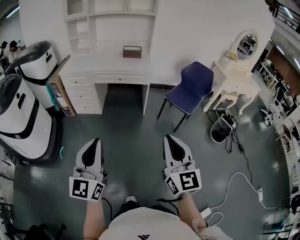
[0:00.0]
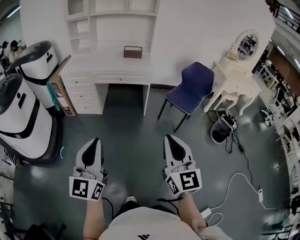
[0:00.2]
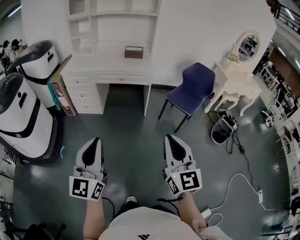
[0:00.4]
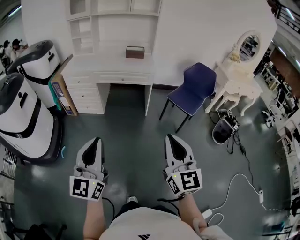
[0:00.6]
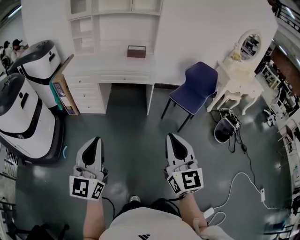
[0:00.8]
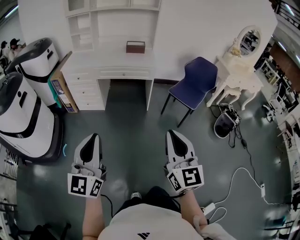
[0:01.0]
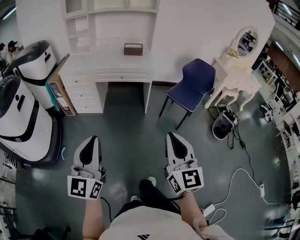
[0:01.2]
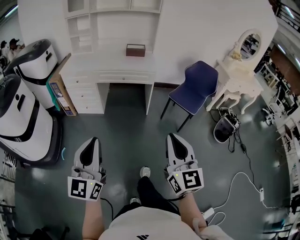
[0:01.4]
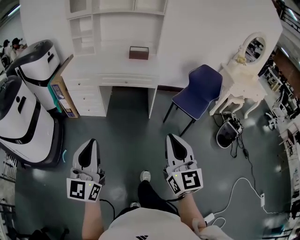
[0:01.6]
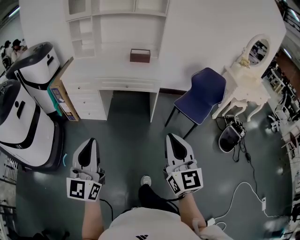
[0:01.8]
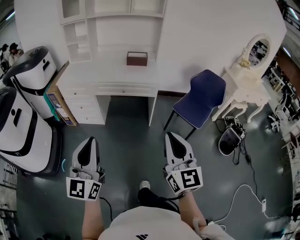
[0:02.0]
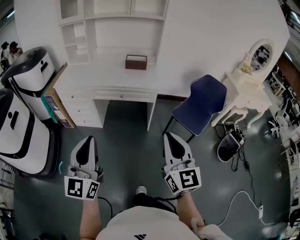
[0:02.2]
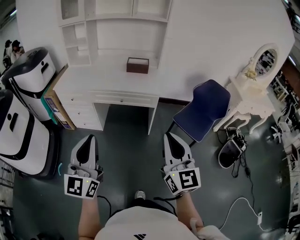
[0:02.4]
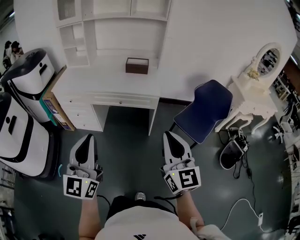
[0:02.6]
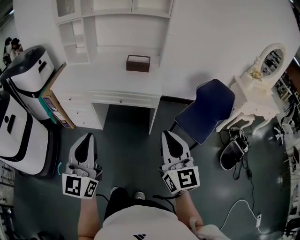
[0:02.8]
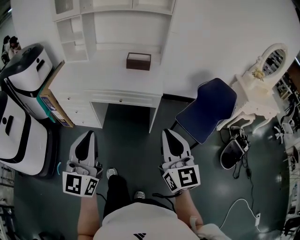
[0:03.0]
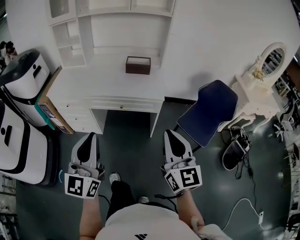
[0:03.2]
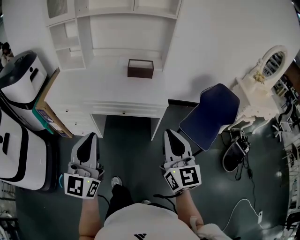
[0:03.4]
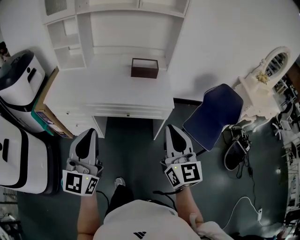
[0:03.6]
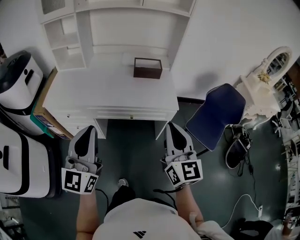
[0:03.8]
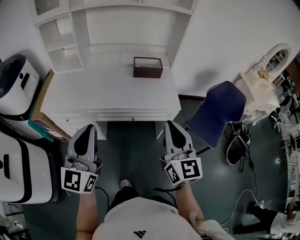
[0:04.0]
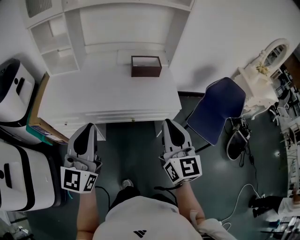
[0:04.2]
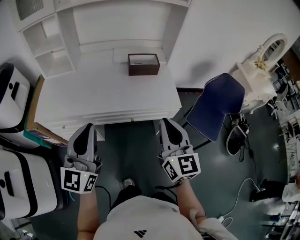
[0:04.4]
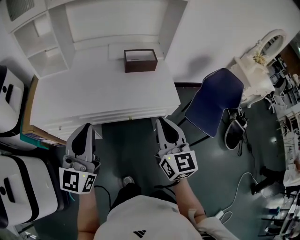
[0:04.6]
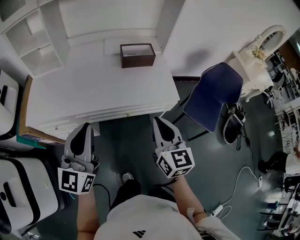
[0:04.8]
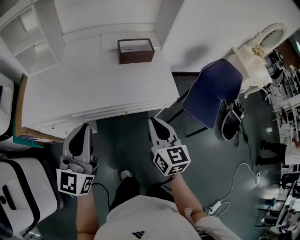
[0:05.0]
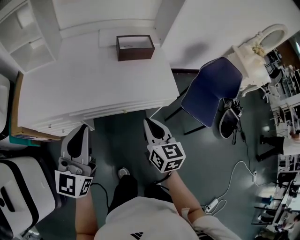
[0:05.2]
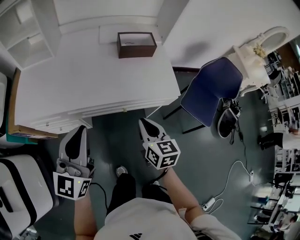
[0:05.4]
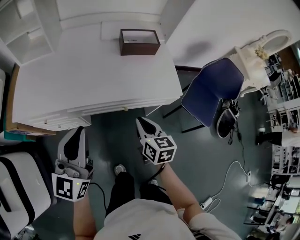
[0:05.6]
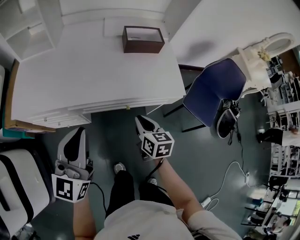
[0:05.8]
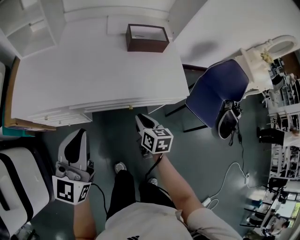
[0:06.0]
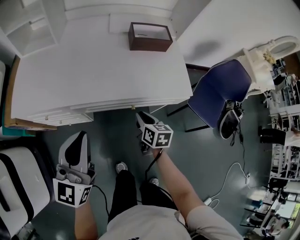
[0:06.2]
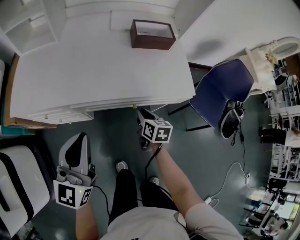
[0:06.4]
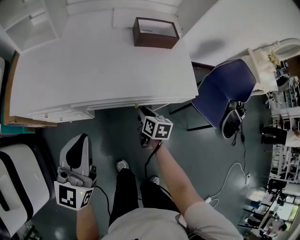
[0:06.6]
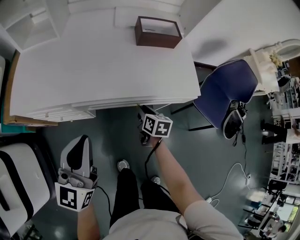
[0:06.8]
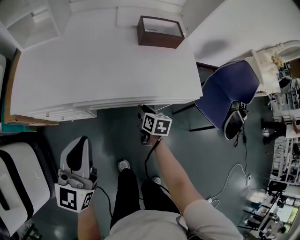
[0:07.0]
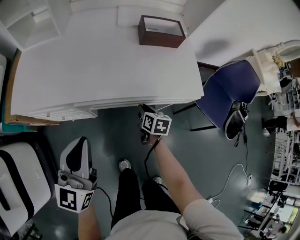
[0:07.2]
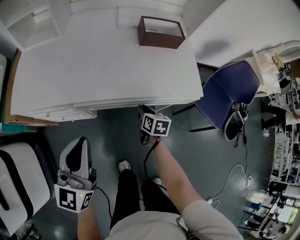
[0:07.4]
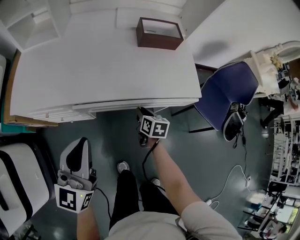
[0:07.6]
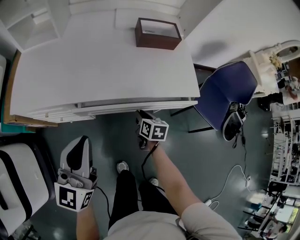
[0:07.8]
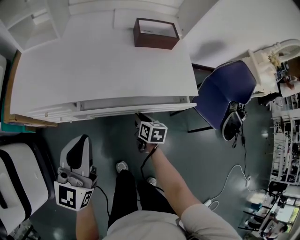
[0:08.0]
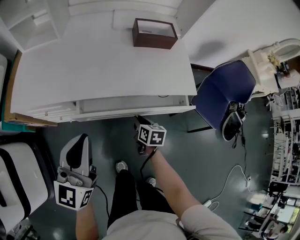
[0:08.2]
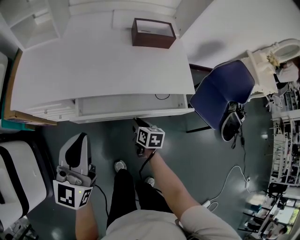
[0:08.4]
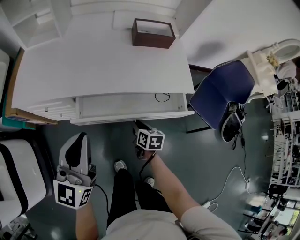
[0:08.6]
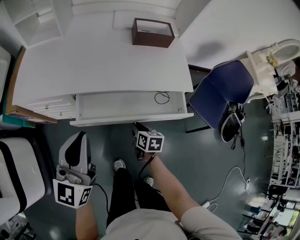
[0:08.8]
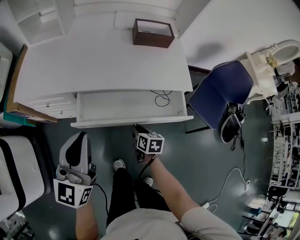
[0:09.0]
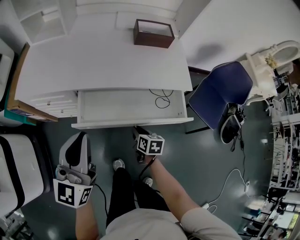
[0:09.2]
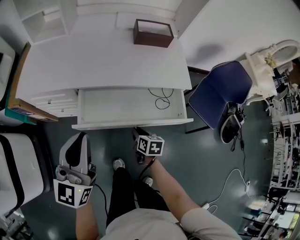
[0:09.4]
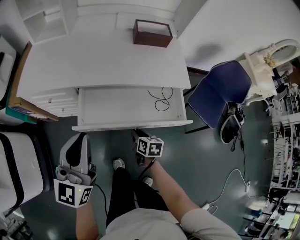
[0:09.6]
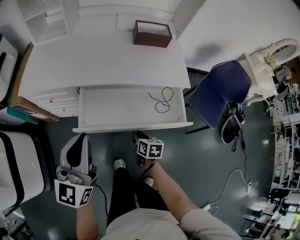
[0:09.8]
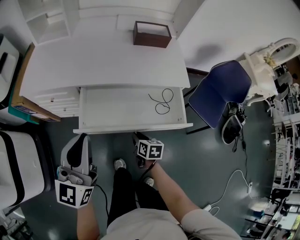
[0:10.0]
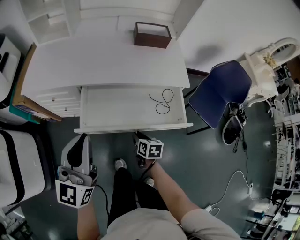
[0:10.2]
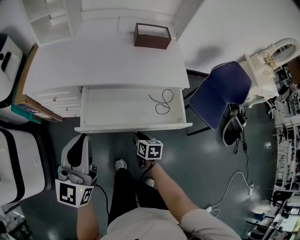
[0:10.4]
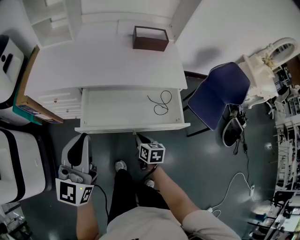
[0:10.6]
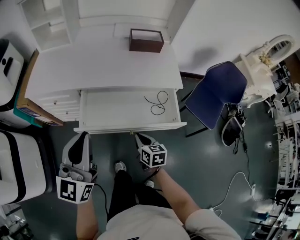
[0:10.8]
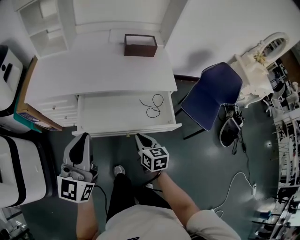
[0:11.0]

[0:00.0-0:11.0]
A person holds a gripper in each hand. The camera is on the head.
0:00.0 to 0:01.6: The left gripper goes about 10 cm forward and to the left; the right gripper is displaced forward by about 10 cm.
0:01.6 to 0:03.2: Both grippers move forward, approximately 35 cm.
0:03.2 to 0:04.8: The left gripper moves forward and to the left, roughly 30 cm. Meanwhile the right gripper shifts some 30 cm forward, to the left and downward.
0:04.8 to 0:06.2: The right gripper shifts some 25 cm downward, and swivels approximately 40 degrees. The left gripper is displaced downward by roughly 10 cm.
0:06.2 to 0:07.8: The right gripper travels downward by approximately 5 cm.
0:07.8 to 0:09.4: The right gripper is displaced backward by about 15 cm. The left gripper is displaced backward by approximately 10 cm.
0:09.4 to 0:11.0: The left gripper goes some 5 cm backward, while the right gripper moves upward and backward, approximately 15 cm, and swivels about 20 degrees.

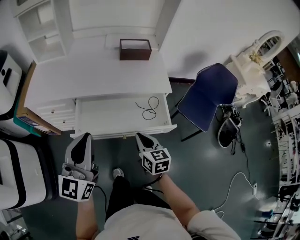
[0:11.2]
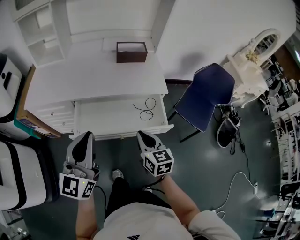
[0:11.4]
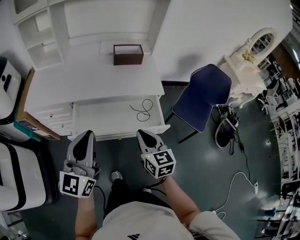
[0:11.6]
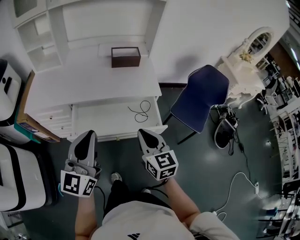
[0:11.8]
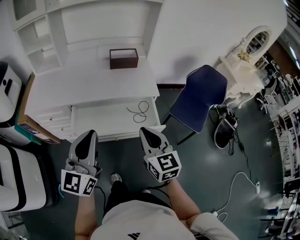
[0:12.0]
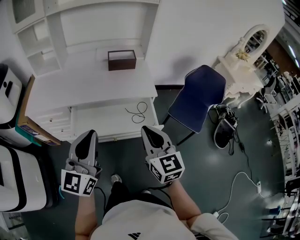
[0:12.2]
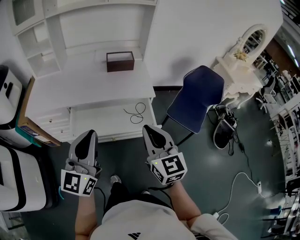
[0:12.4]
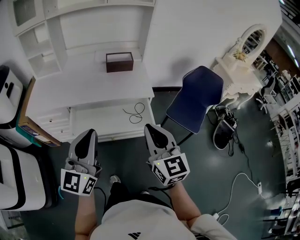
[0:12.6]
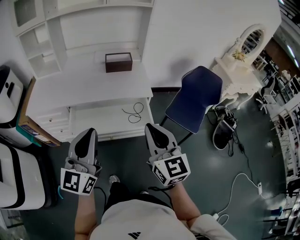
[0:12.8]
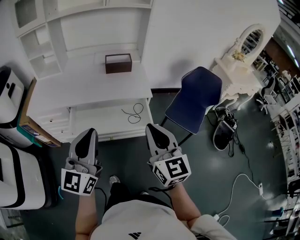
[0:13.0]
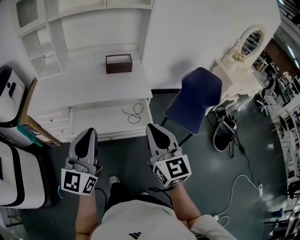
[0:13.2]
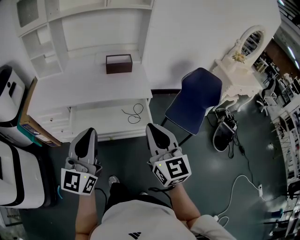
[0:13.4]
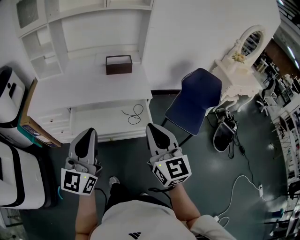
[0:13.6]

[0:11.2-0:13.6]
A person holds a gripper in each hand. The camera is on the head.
0:11.2 to 0:12.4: The right gripper heads upward, covering about 20 cm, and rotates about 30 degrees, while the left gripper shifts approximately 10 cm to the right.
0:12.4 to 0:13.6: The right gripper shifts by roughly 5 cm.

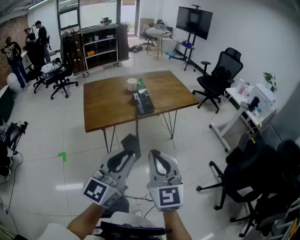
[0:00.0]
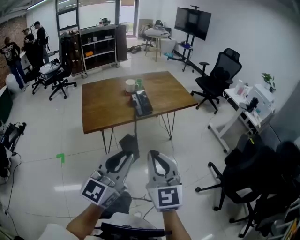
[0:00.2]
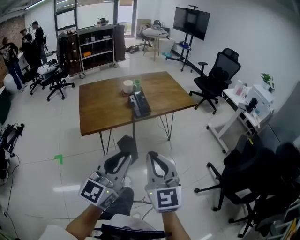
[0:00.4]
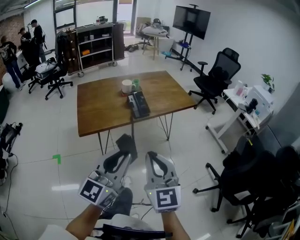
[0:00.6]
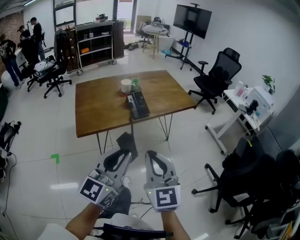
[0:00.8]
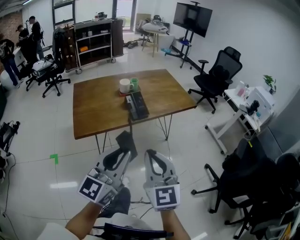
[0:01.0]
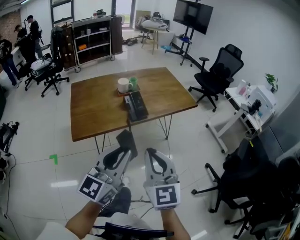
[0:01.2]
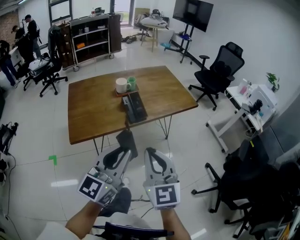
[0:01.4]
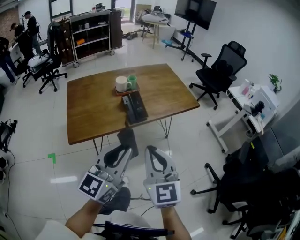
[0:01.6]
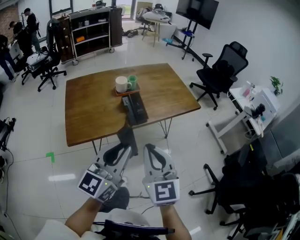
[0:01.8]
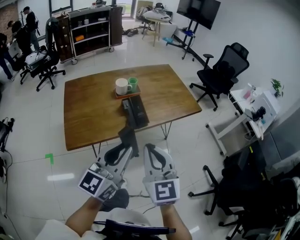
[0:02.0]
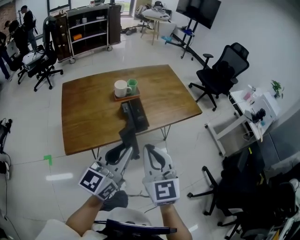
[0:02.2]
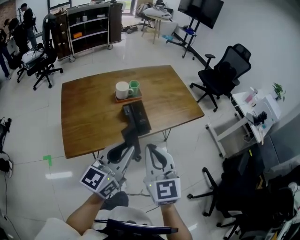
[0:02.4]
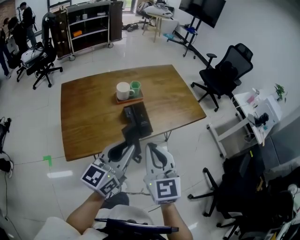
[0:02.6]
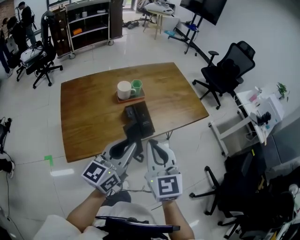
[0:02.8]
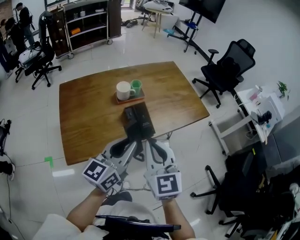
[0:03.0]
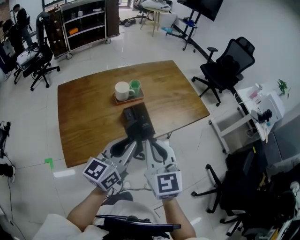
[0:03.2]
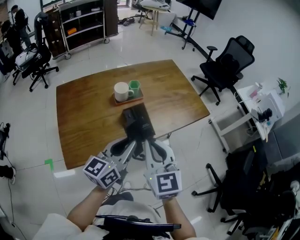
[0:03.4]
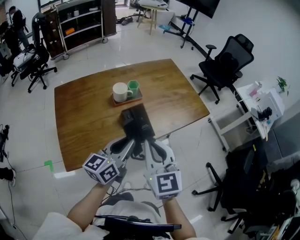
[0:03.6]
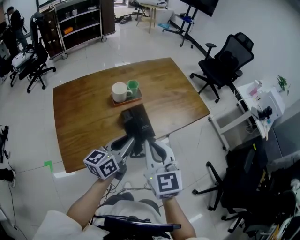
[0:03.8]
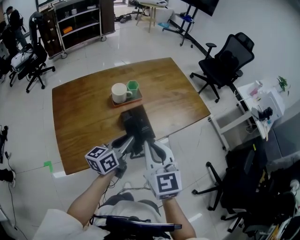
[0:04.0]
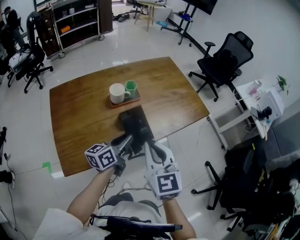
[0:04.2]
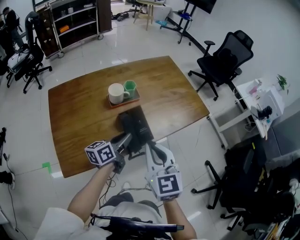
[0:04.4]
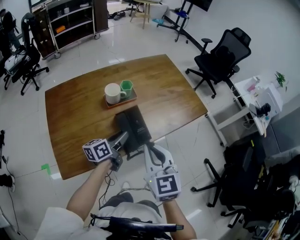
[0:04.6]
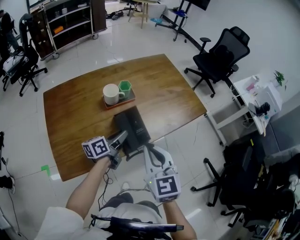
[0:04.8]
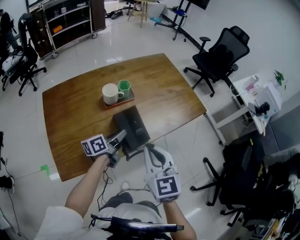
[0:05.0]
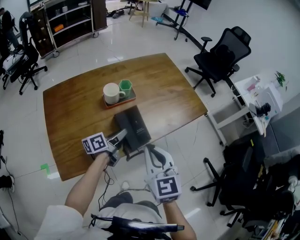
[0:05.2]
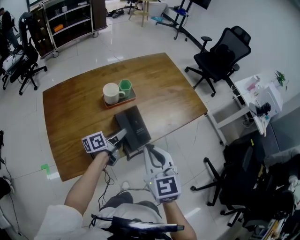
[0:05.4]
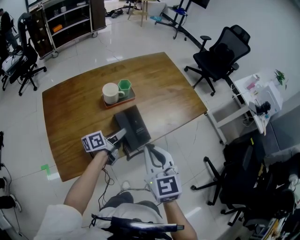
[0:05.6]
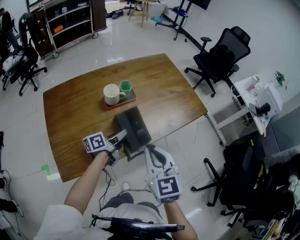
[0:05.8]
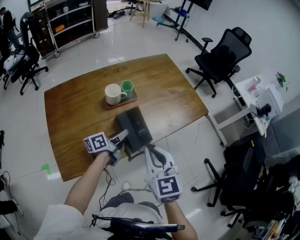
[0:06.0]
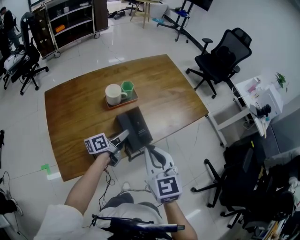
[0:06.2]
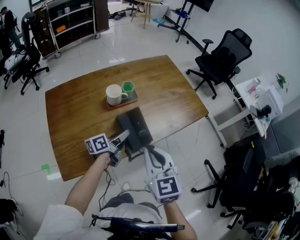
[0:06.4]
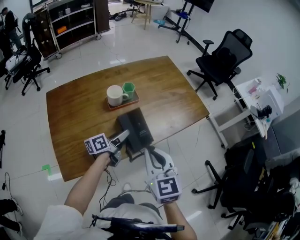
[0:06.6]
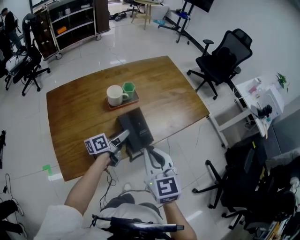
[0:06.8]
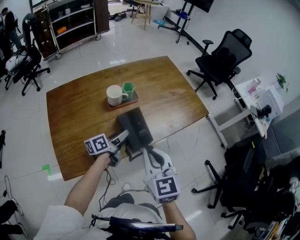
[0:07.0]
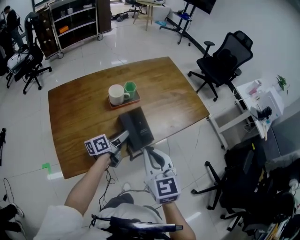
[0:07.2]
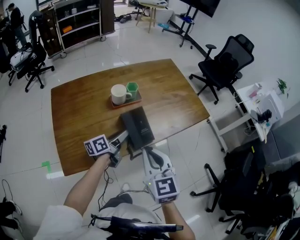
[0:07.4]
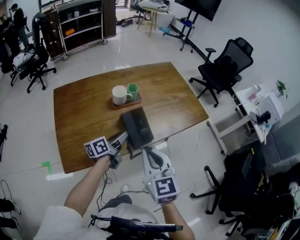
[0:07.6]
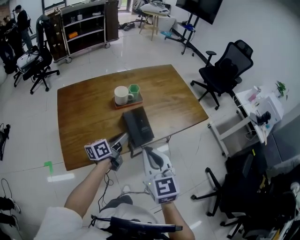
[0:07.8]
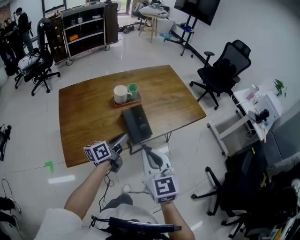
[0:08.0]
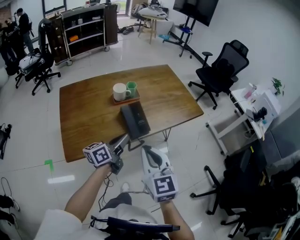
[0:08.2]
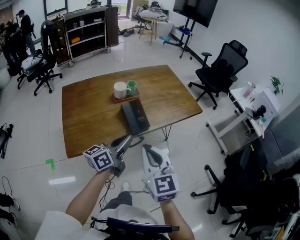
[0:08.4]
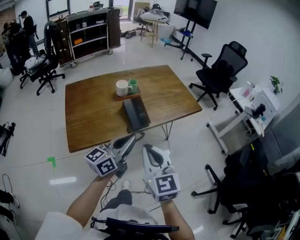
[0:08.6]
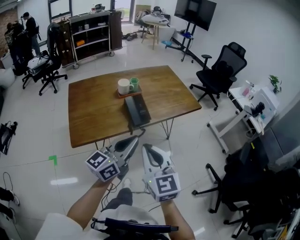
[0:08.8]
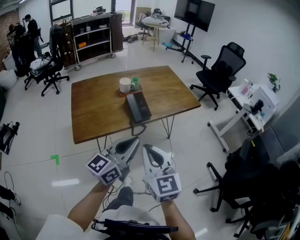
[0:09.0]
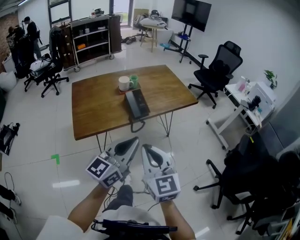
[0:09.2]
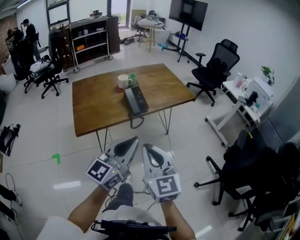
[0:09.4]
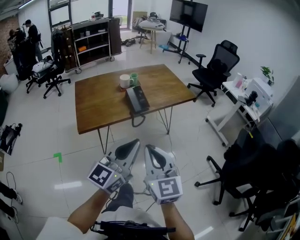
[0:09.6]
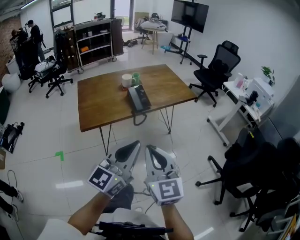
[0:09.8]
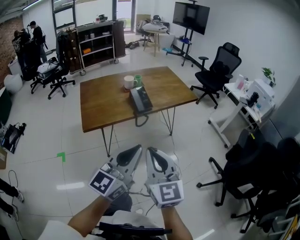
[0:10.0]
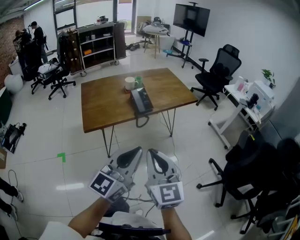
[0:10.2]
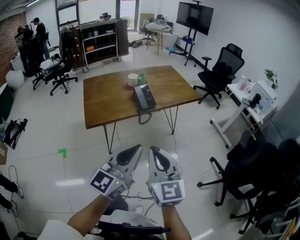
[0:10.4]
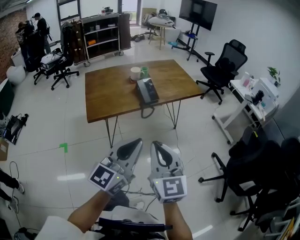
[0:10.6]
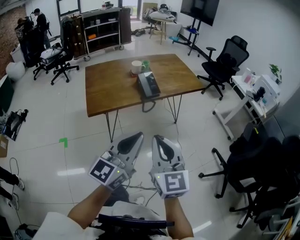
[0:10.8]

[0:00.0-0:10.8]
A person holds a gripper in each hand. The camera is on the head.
0:00.0 to 0:01.6: Both grippers travel together forward, approximately 20 cm.
0:01.6 to 0:03.0: Both grippers move forward, some 20 cm.
0:03.0 to 0:04.6: The right gripper moves forward and downward, roughly 10 cm. Meanwhile the left gripper travels downward and forward by about 25 cm, and turns by roughly 30 degrees.
0:04.6 to 0:06.2: The grippers make only small movements.
0:06.2 to 0:07.8: The grippers both shift backward by about 5 cm.
0:07.8 to 0:09.2: The right gripper goes about 25 cm backward. The left gripper goes approximately 40 cm backward and upward, and rolls clockwise, seen from behind, by about 40 degrees.
0:09.2 to 0:10.8: Both grippers travel together backward, about 10 cm.
